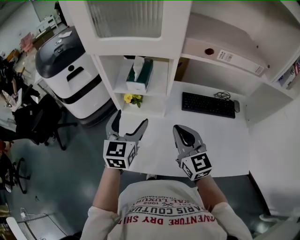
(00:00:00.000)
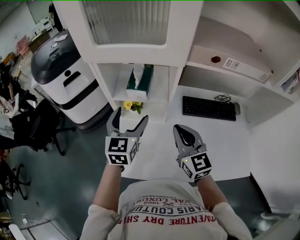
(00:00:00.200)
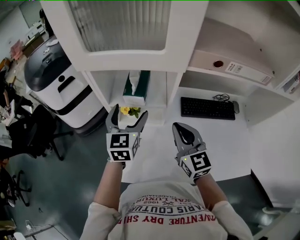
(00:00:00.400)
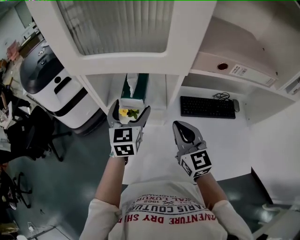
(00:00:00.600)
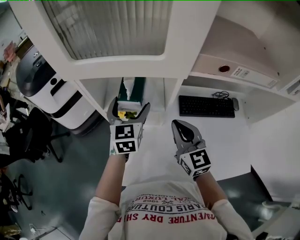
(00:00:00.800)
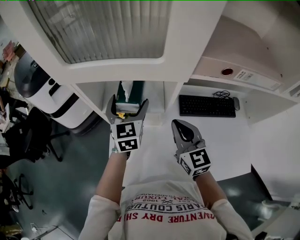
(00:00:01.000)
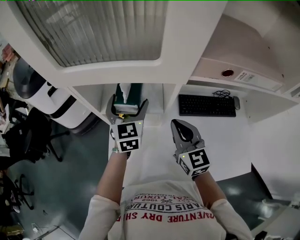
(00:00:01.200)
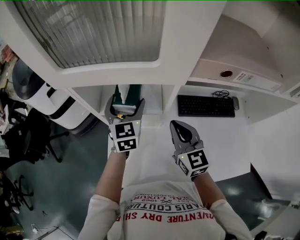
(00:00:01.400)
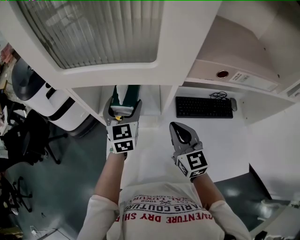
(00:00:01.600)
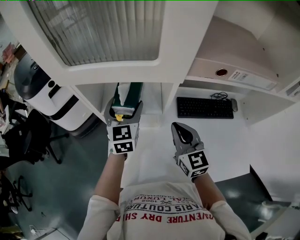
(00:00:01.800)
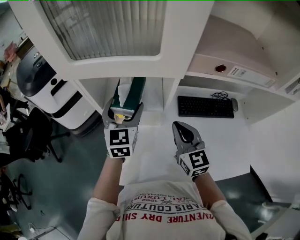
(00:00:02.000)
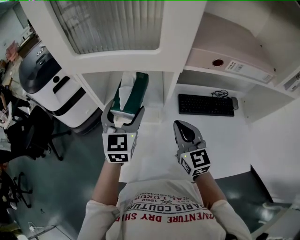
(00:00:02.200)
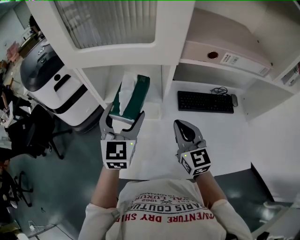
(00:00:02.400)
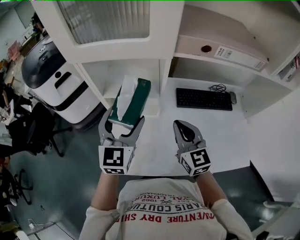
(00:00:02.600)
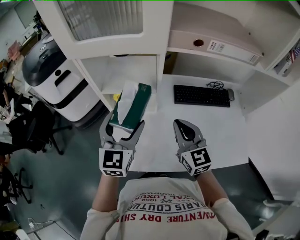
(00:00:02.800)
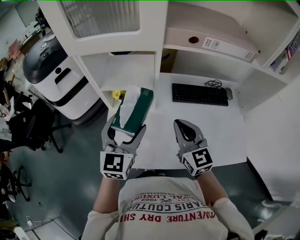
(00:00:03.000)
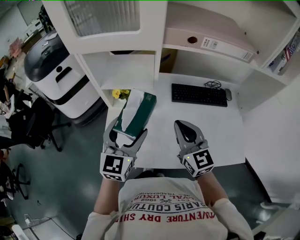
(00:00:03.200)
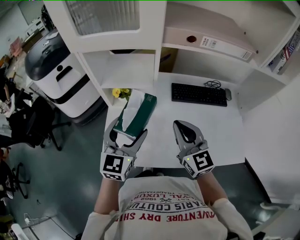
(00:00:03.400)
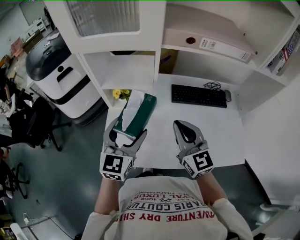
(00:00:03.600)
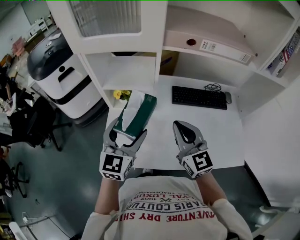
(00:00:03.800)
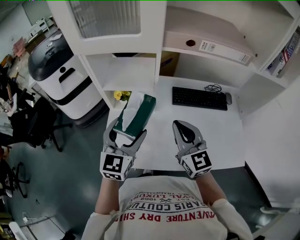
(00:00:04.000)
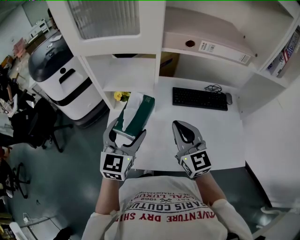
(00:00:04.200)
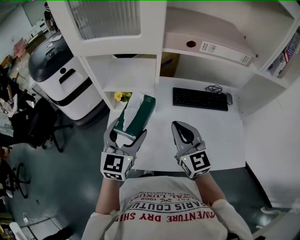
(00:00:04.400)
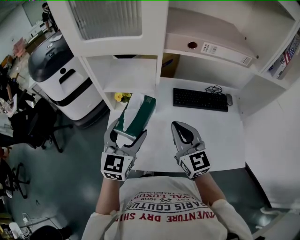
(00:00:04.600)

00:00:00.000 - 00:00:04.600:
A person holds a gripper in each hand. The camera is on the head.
00:00:00.000 - 00:00:01.600: The right gripper moves forward, approximately 10 cm; the left gripper is displaced forward by about 20 cm.
00:00:01.600 - 00:00:03.000: The left gripper shifts approximately 20 cm backward. The right gripper shifts about 10 cm backward.
00:00:03.000 - 00:00:04.600: The grippers stay close to where they were, moving slightly.

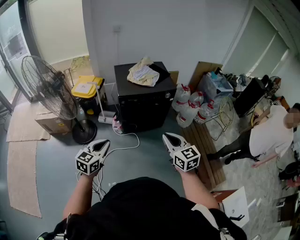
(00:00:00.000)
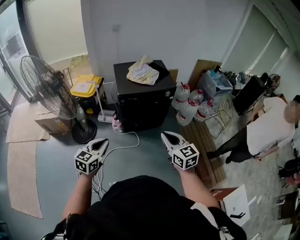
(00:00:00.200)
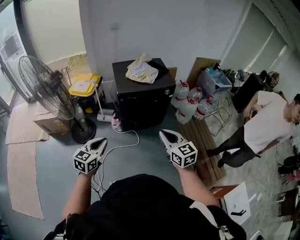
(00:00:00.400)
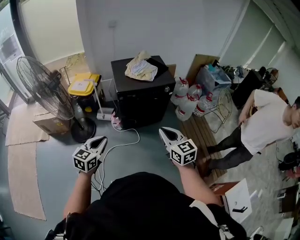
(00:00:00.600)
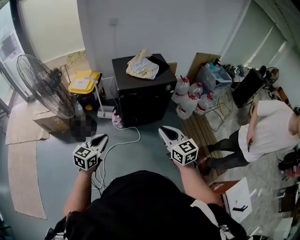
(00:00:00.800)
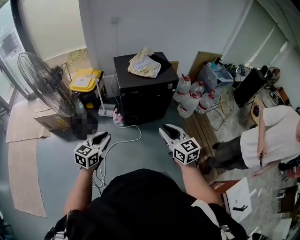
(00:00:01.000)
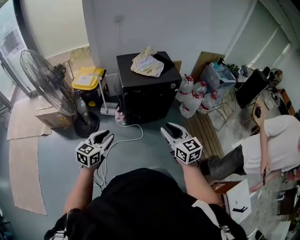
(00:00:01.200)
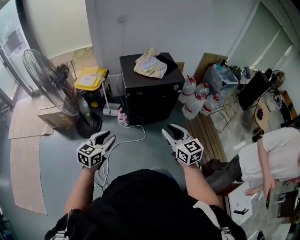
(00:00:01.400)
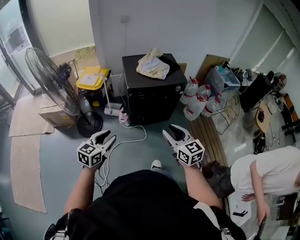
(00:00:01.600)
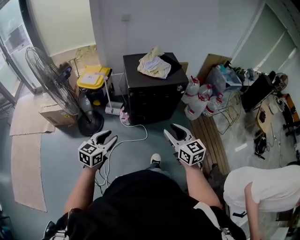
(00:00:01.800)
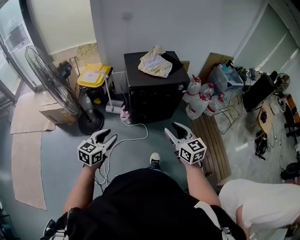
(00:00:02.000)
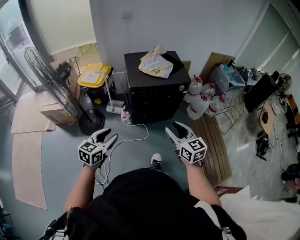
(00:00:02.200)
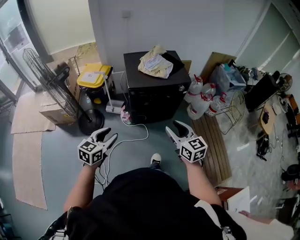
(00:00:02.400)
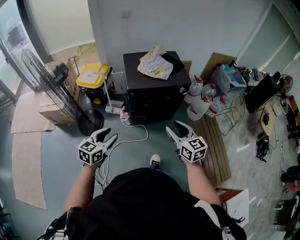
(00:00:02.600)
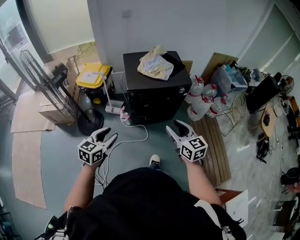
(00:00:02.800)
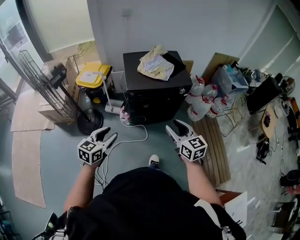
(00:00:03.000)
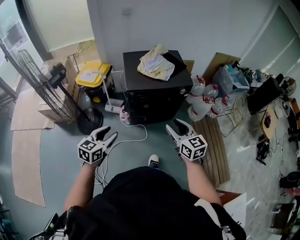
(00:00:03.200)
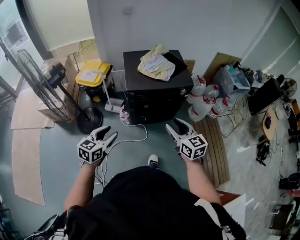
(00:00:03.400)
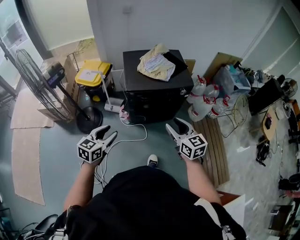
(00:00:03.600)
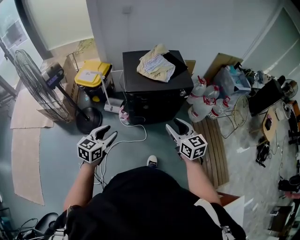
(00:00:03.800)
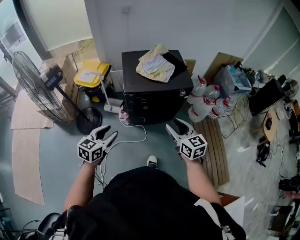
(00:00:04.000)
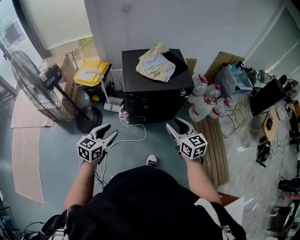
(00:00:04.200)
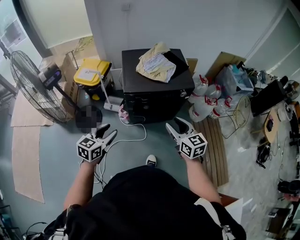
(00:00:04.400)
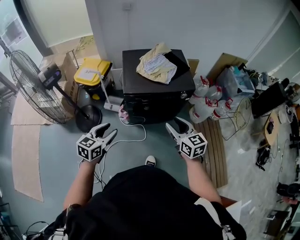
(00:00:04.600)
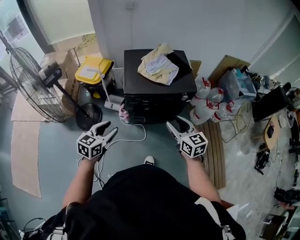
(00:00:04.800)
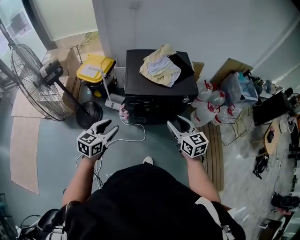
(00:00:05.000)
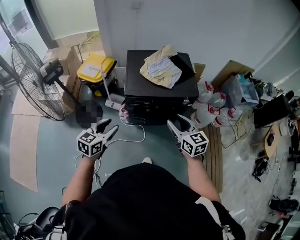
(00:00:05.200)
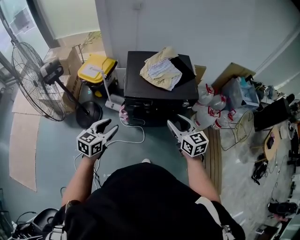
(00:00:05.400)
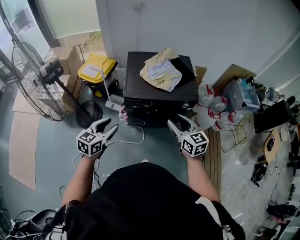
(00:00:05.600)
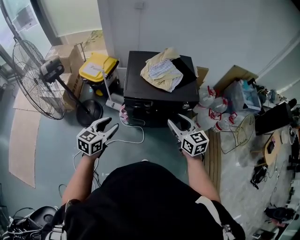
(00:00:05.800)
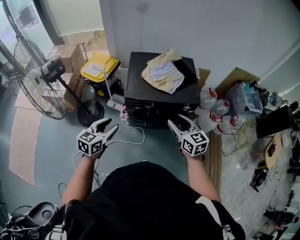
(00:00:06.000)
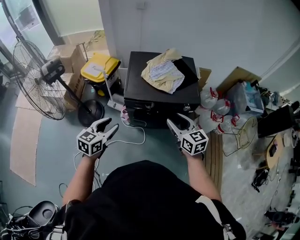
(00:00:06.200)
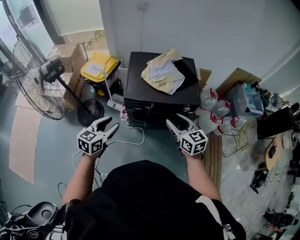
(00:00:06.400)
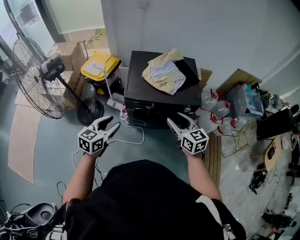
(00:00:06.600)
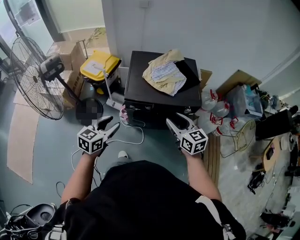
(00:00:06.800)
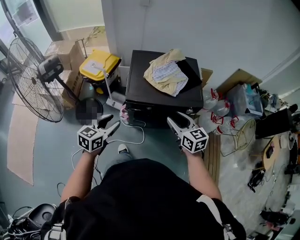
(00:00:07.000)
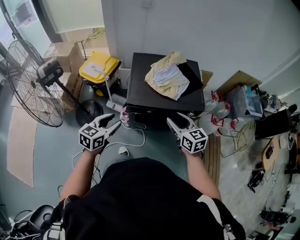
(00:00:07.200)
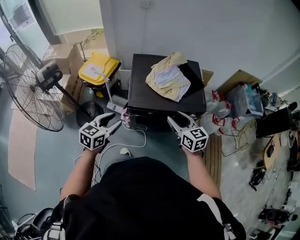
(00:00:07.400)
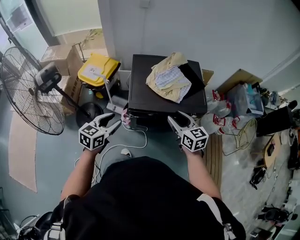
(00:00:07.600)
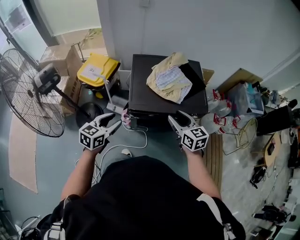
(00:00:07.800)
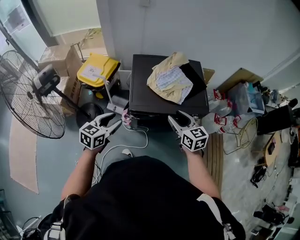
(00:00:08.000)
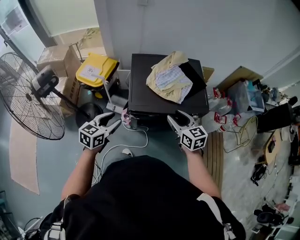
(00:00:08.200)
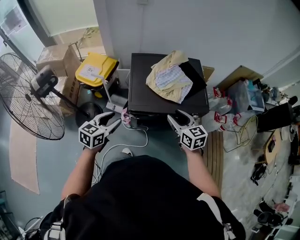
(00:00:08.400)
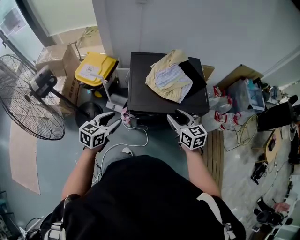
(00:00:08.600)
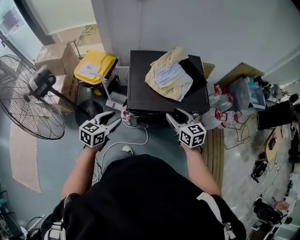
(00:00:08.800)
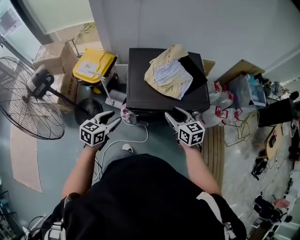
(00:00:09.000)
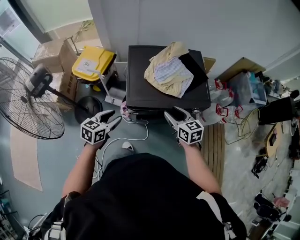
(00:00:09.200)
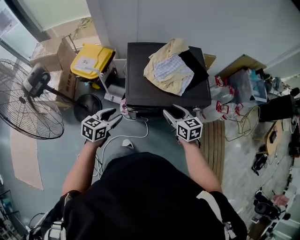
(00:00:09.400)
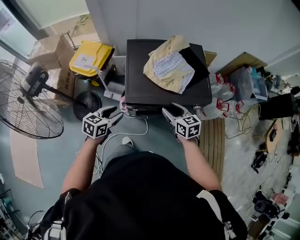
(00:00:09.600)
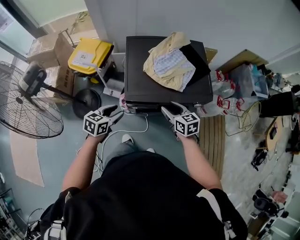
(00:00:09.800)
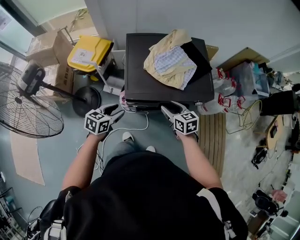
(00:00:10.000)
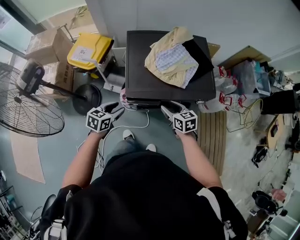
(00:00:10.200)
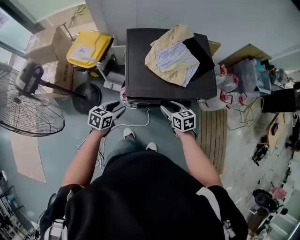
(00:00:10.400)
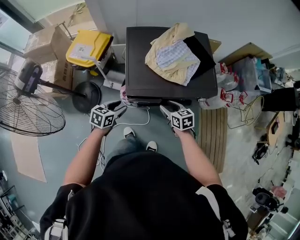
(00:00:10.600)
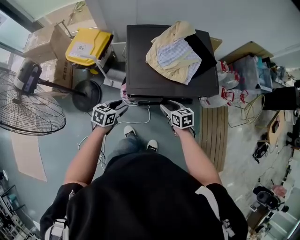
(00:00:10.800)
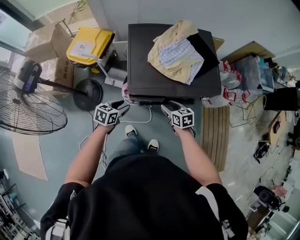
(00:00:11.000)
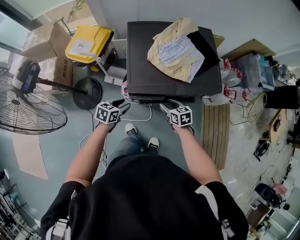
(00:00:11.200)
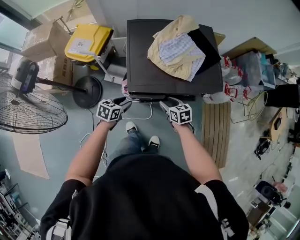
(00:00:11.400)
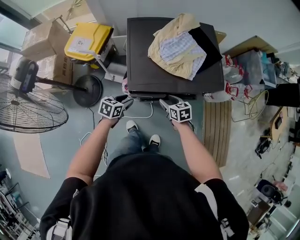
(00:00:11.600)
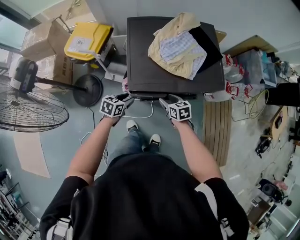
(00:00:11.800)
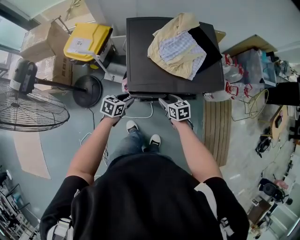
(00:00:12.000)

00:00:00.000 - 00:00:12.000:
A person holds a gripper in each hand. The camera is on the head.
00:00:00.000 - 00:00:01.600: The two grippers go some 5 cm to the left. The left gripper opens up; the right gripper opens up.
00:00:01.600 - 00:00:03.000: Both grippers travel together forward, roughly 10 cm.
00:00:03.000 - 00:00:04.400: The grippers both shift forward by approximately 10 cm.
00:00:04.400 - 00:00:06.000: Both grippers move forward, roughly 10 cm.
00:00:06.000 - 00:00:07.600: The right gripper goes approximately 15 cm forward and to the left. Meanwhile the left gripper goes approximately 10 cm forward.
00:00:07.600 - 00:00:09.000: The left gripper moves roughly 5 cm. Meanwhile the right gripper shifts about 5 cm downward.
00:00:09.000 - 00:00:10.400: Both grippers move downward, roughly 15 cm.
00:00:10.400 - 00:00:12.000: The grippers both shift downward by some 10 cm.

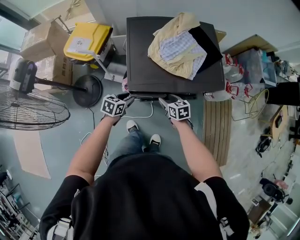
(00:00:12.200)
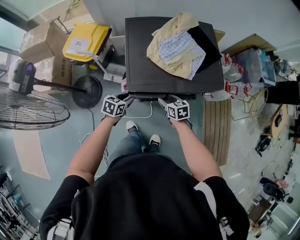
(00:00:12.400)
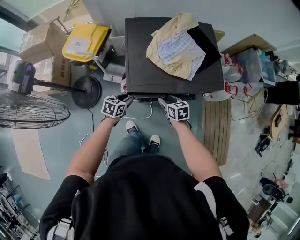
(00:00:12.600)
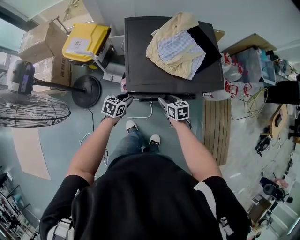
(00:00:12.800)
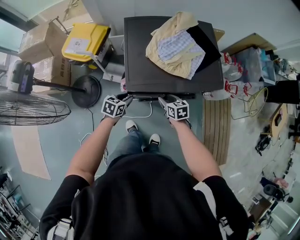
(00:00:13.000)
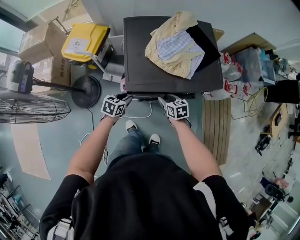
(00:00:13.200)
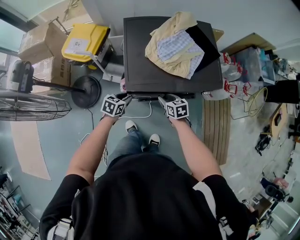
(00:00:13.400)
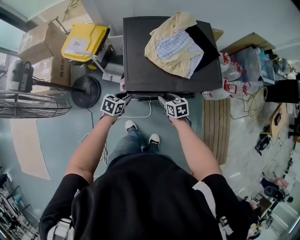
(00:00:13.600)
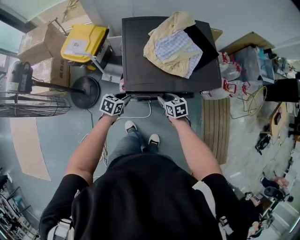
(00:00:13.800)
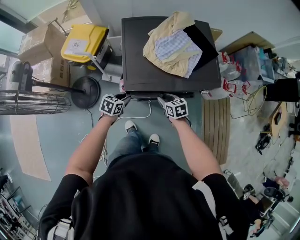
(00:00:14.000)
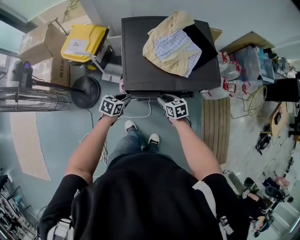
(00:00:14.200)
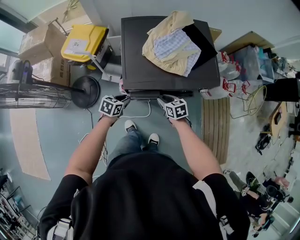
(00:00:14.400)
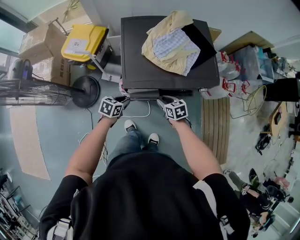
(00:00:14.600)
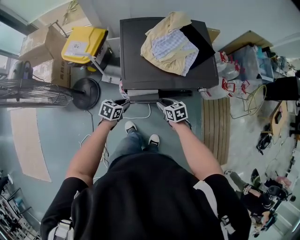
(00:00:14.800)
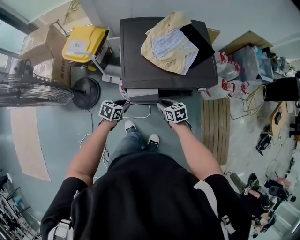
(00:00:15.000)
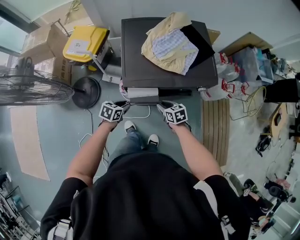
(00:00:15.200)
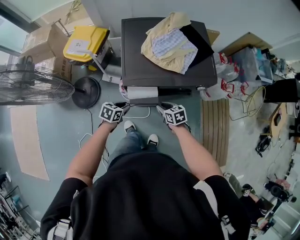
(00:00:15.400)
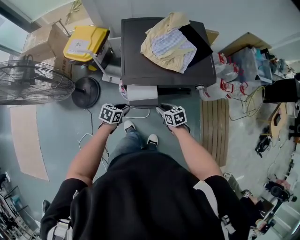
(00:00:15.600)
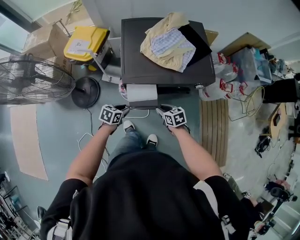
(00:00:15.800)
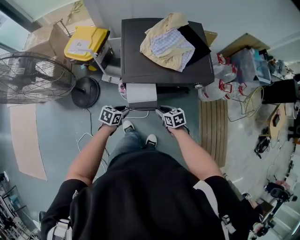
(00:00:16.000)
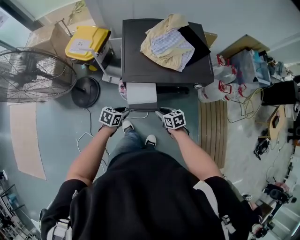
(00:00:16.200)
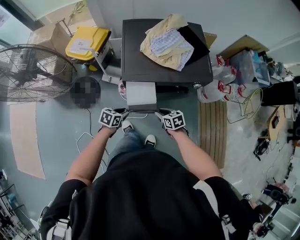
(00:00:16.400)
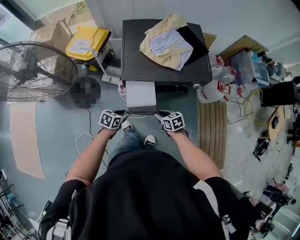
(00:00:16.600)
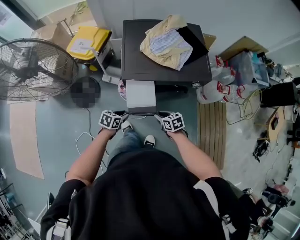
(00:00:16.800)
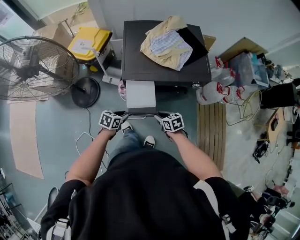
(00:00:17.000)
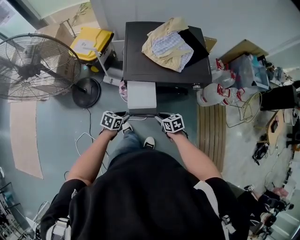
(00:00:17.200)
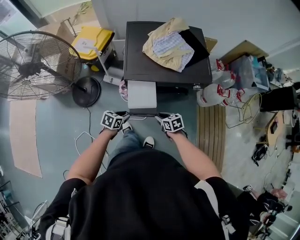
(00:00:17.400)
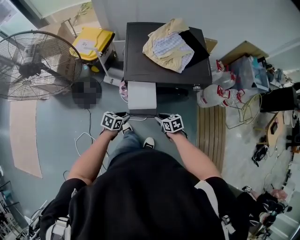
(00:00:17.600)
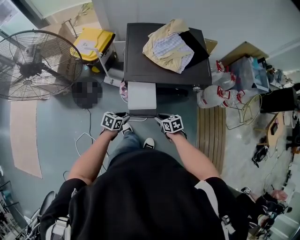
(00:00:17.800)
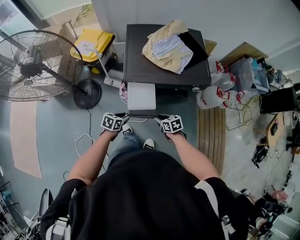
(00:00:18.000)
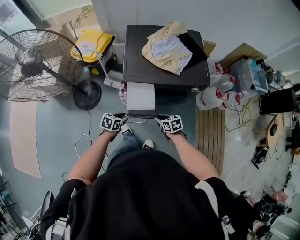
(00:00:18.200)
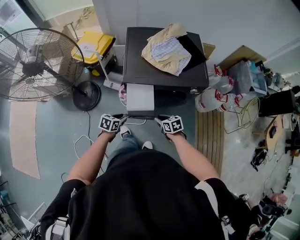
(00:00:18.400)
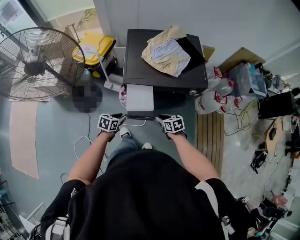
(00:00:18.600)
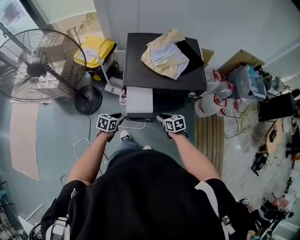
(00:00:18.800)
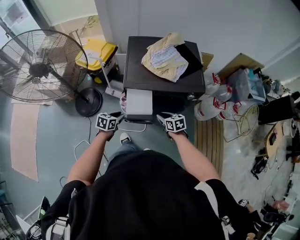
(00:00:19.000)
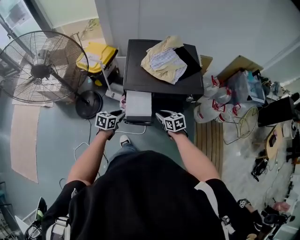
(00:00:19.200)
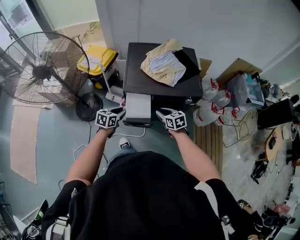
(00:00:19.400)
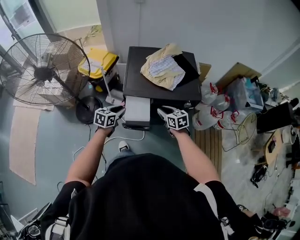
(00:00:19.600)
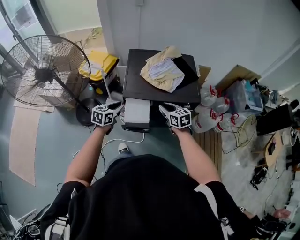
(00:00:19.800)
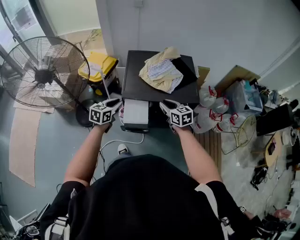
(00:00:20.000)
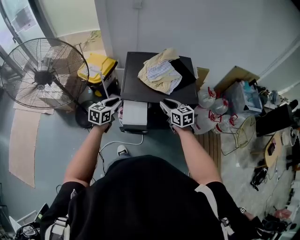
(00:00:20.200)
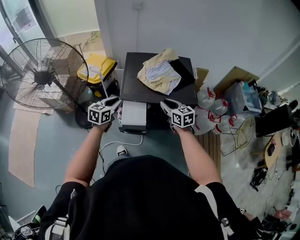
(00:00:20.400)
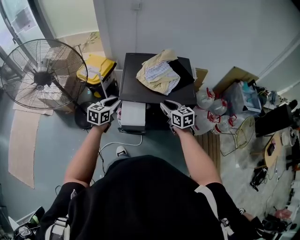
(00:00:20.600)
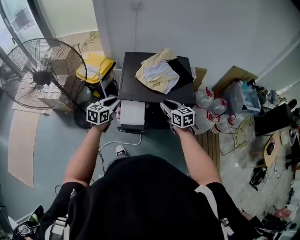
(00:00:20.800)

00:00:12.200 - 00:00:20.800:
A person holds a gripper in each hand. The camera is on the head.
00:00:12.200 - 00:00:13.600: Neither gripper changes place.
00:00:13.600 - 00:00:15.000: The two grippers go about 5 cm backward.
00:00:15.000 - 00:00:16.600: The two grippers go some 10 cm backward.
00:00:16.600 - 00:00:18.000: There are only small adjustments of the grippers.
00:00:18.000 - 00:00:19.400: The two grippers go roughly 15 cm upward and forward.
00:00:19.400 - 00:00:20.800: Both grippers move upward, about 15 cm.
